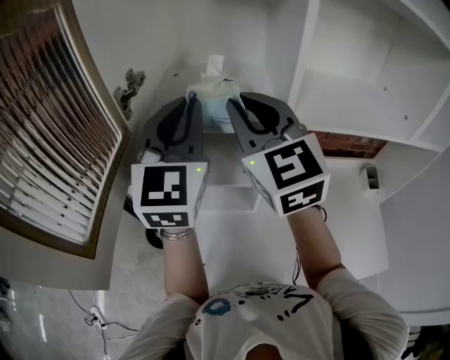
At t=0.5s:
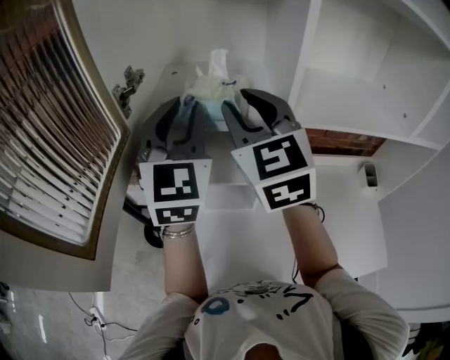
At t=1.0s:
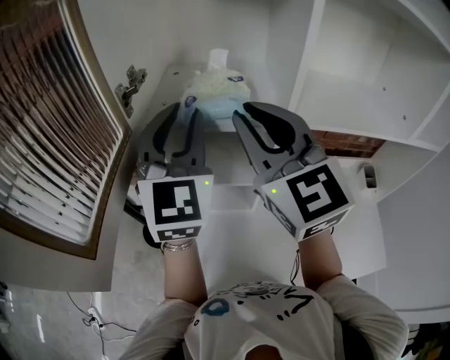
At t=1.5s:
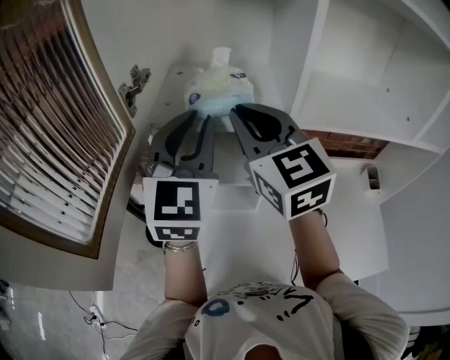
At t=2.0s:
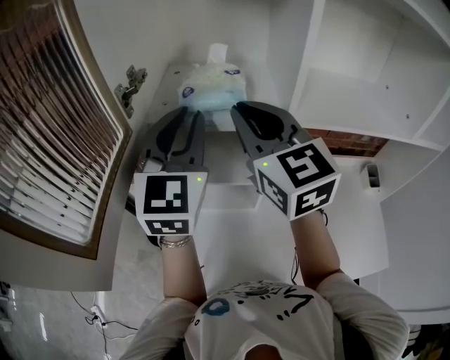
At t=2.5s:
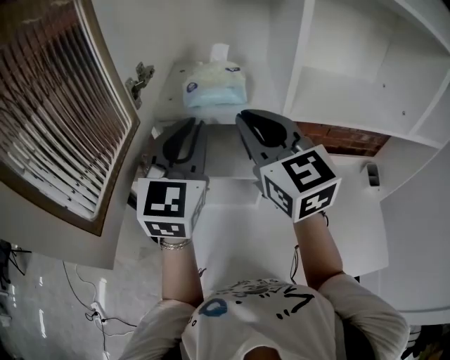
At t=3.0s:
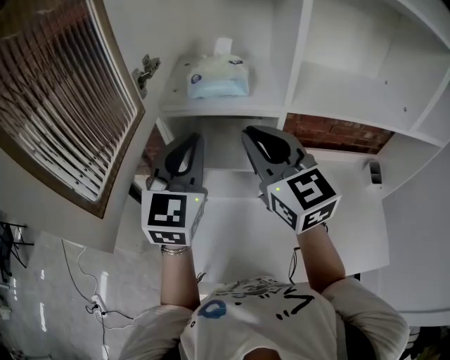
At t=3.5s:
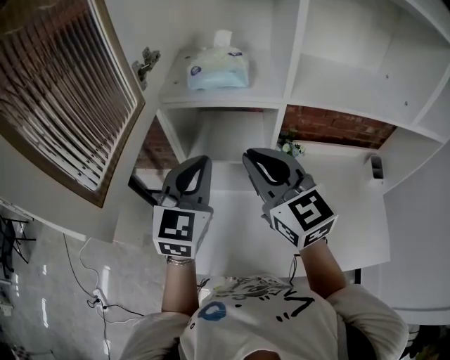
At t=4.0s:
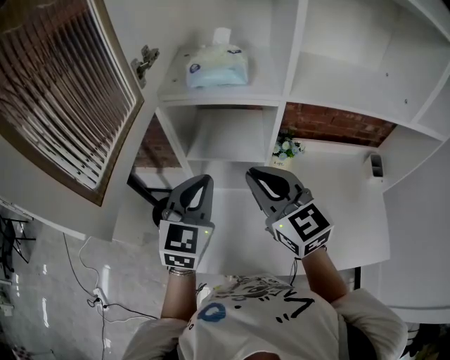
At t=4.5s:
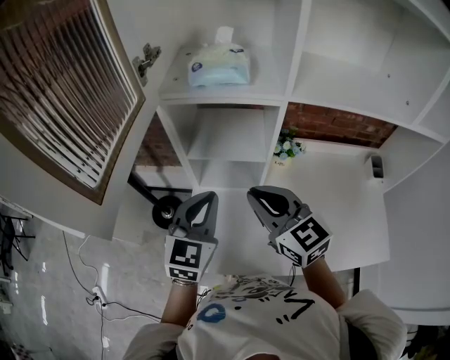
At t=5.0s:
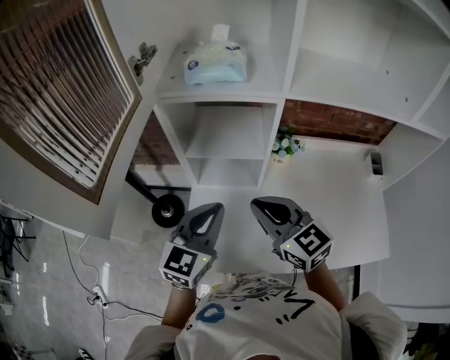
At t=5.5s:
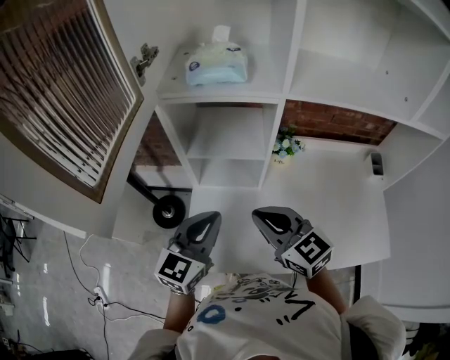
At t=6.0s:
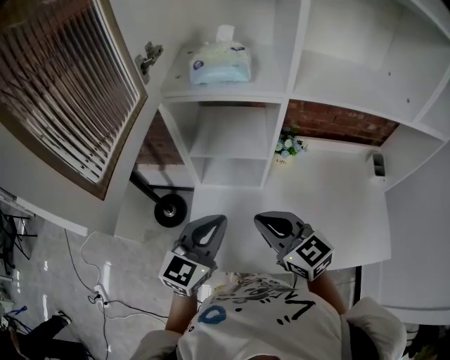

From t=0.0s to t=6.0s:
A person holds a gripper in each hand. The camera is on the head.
From t=0.0s to t=2.0s: The grippers move only a little.
From t=2.0s to t=4.0s: Both grippers move downward and backward, roughly 20 cm.
From t=4.0s to t=6.0s: The left gripper moves backward and downward, approximately 10 cm, while the right gripper travels downward and backward by roughly 15 cm.

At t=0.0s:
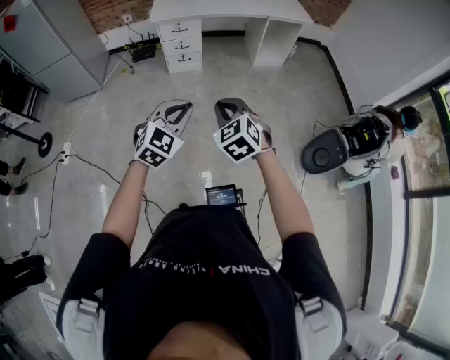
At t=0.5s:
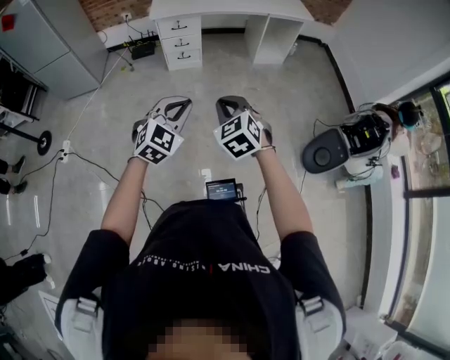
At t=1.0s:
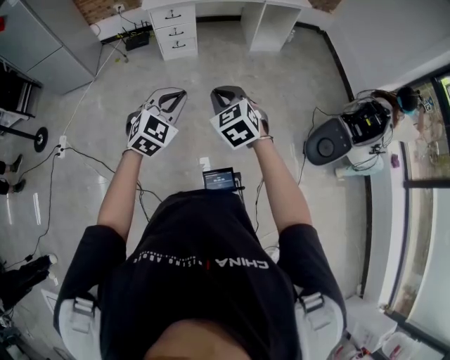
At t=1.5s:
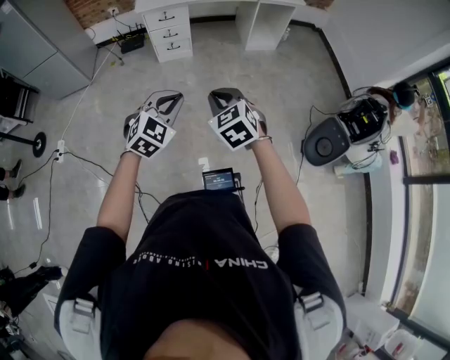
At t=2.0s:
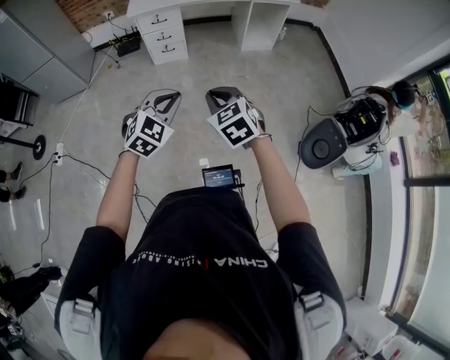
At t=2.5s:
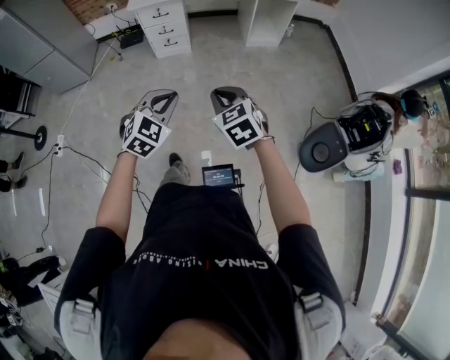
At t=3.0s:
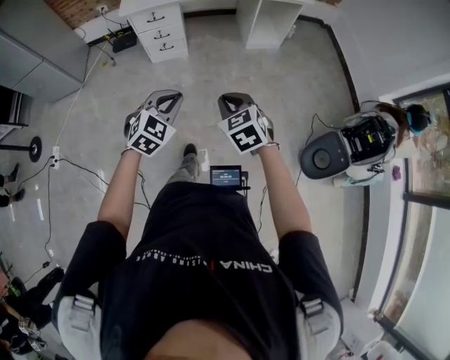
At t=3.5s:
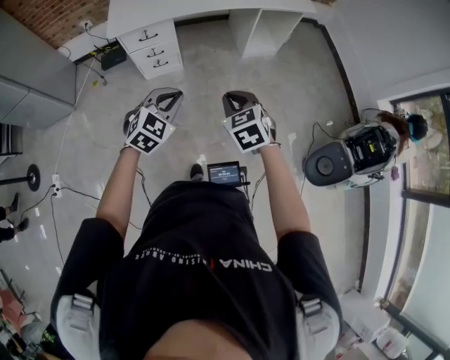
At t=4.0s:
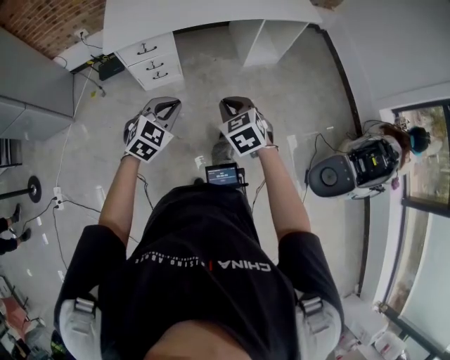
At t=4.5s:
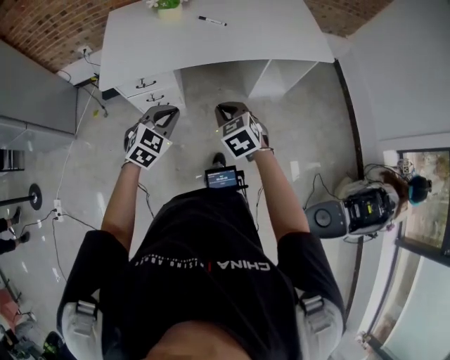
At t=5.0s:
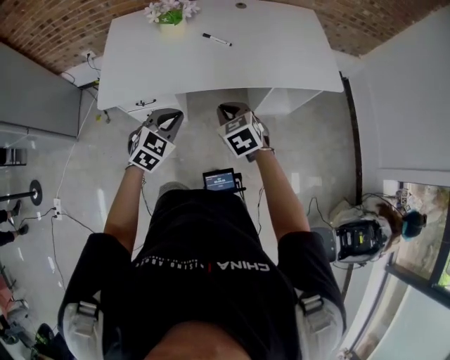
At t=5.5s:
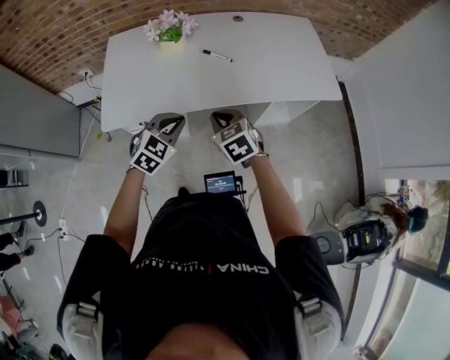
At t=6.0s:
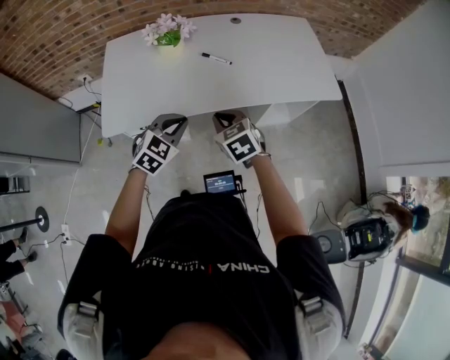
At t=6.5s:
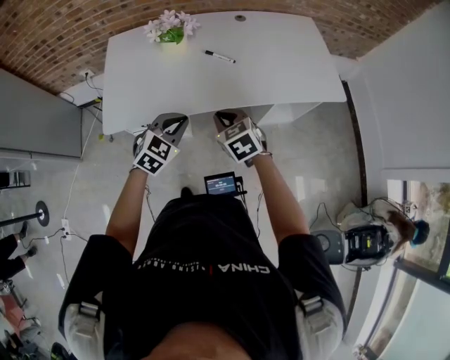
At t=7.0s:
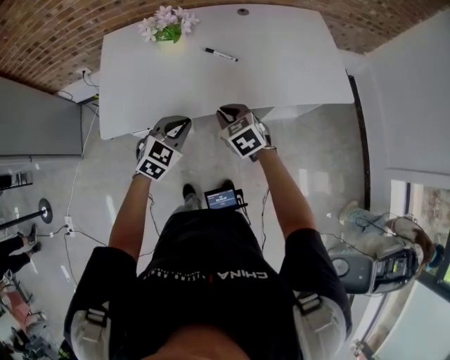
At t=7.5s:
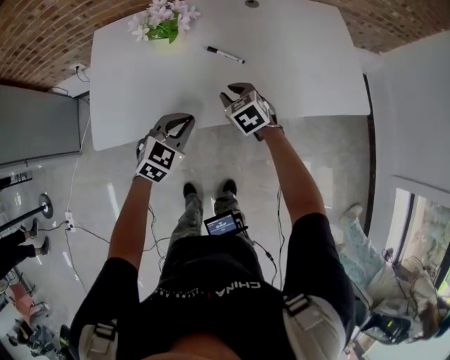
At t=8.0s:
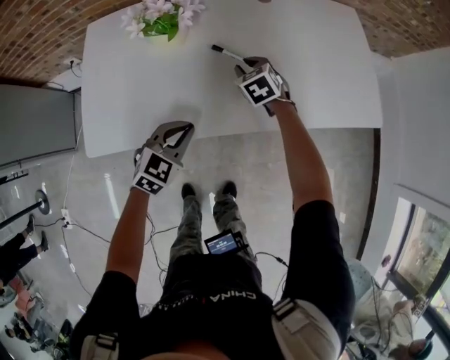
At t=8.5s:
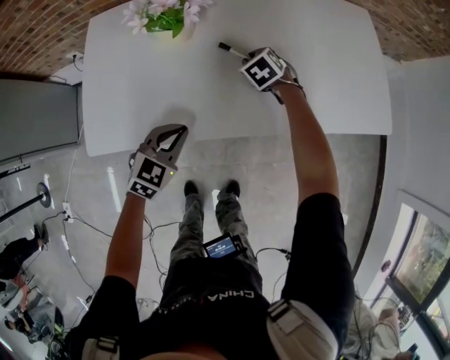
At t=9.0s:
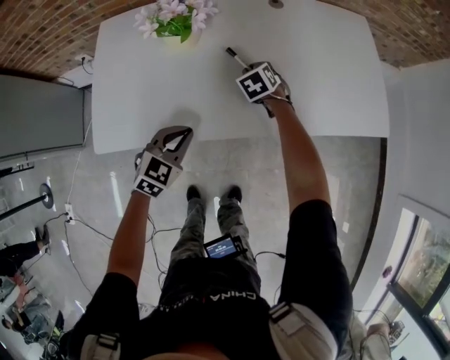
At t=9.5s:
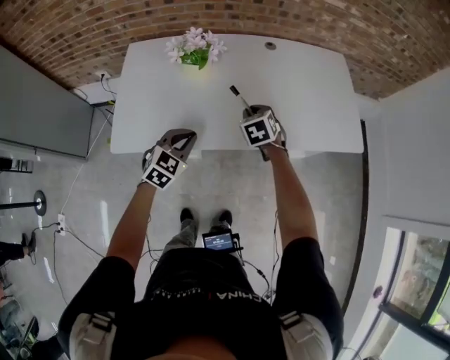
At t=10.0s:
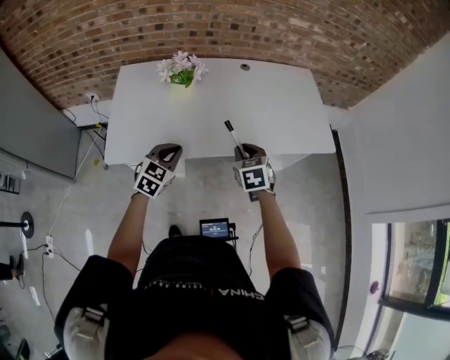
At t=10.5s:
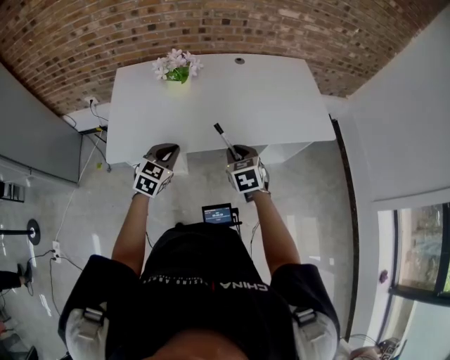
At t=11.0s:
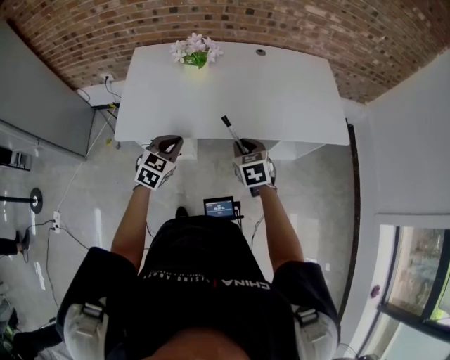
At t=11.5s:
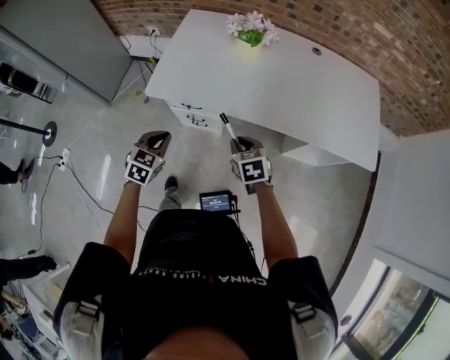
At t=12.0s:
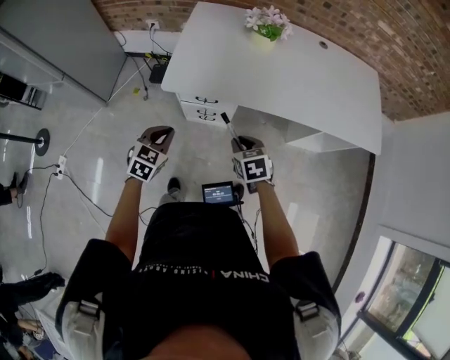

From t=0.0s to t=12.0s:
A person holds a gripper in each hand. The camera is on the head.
From t=0.0s to t=2.0s: Both grippers move to the right, some 10 cm.
From t=2.0s to t=4.0s: Both grippers are carried forward, roughly 50 cm.
From t=4.0s to t=6.0s: The two grippers go some 40 cm forward.
From t=6.0s to t=8.0s: The right gripper moves forward and downward, approximately 40 cm. Meanwhile the left gripper goes about 20 cm forward and downward.
From t=8.0s to t=10.0s: The right gripper is displaced backward and upward by some 30 cm. Meanwhile the left gripper moves upward and backward, about 15 cm.
From t=10.0s to t=12.0s: The left gripper moves approximately 30 cm; the right gripper moves approximately 30 cm, and rotates about 20 degrees.

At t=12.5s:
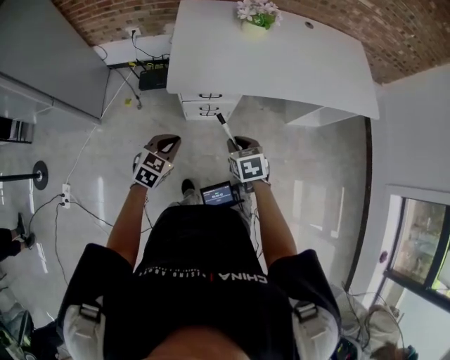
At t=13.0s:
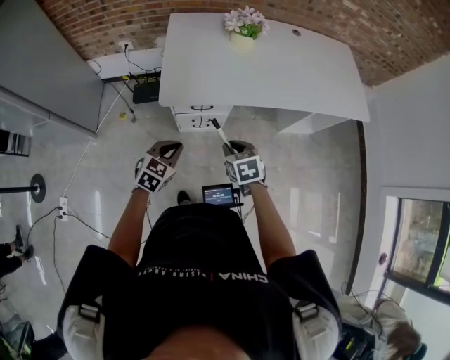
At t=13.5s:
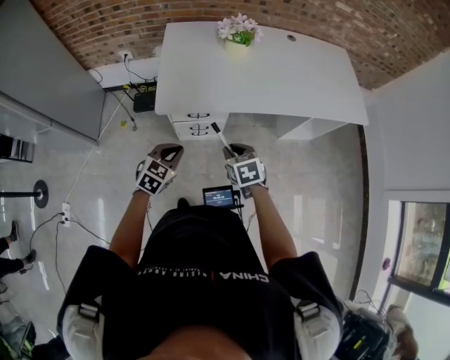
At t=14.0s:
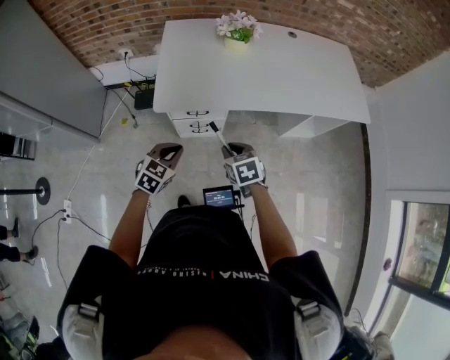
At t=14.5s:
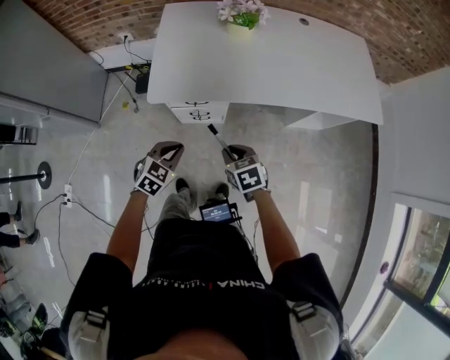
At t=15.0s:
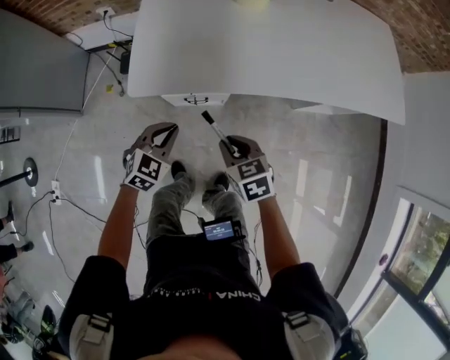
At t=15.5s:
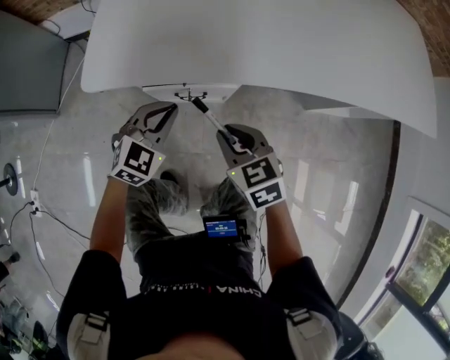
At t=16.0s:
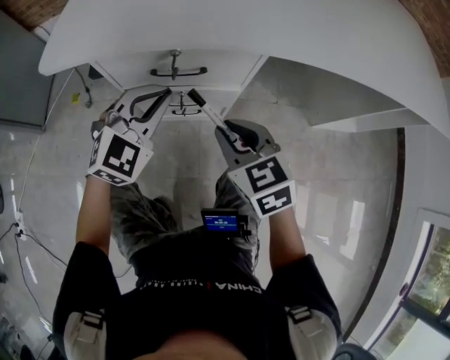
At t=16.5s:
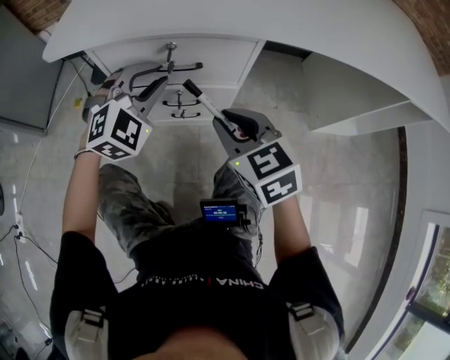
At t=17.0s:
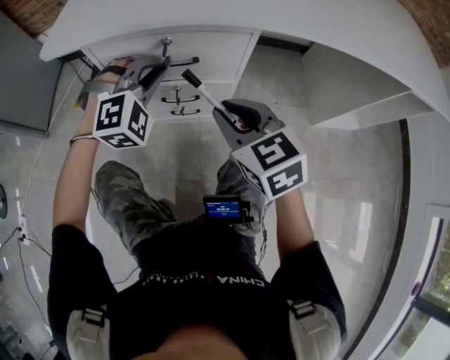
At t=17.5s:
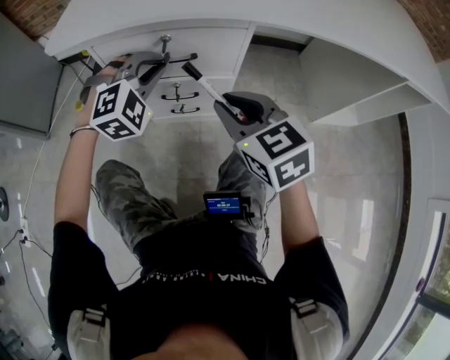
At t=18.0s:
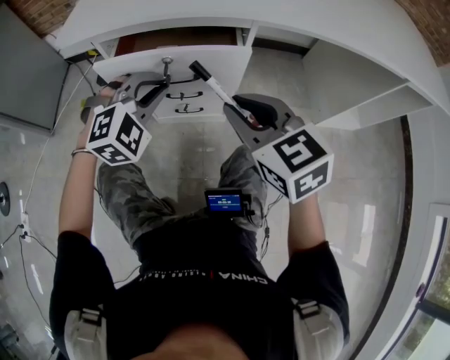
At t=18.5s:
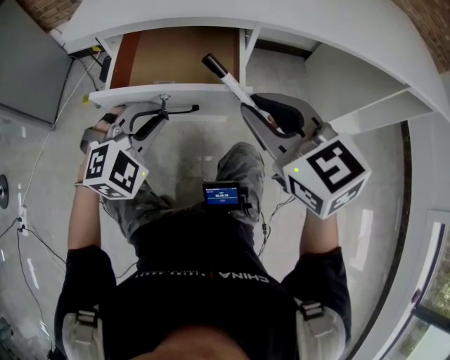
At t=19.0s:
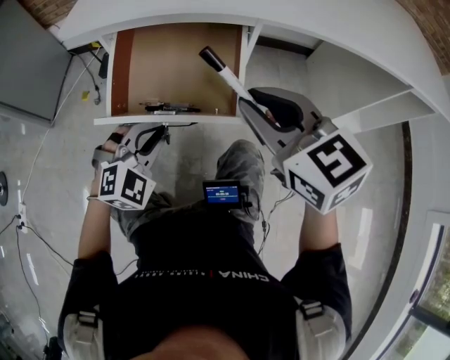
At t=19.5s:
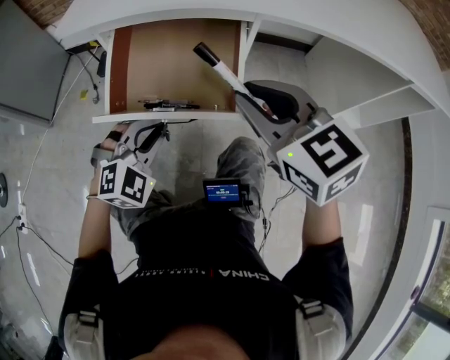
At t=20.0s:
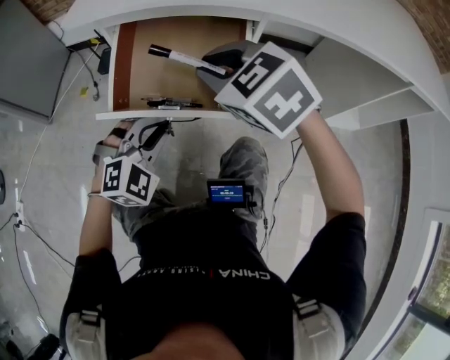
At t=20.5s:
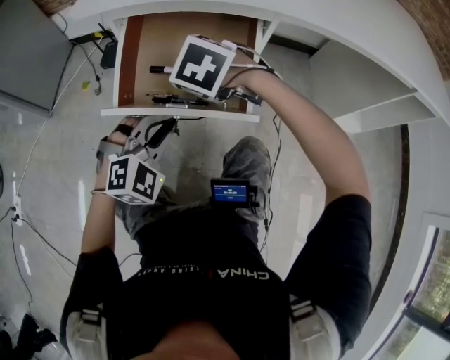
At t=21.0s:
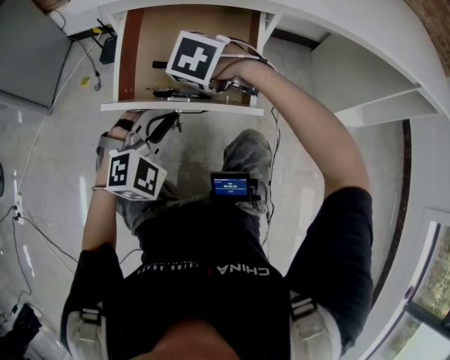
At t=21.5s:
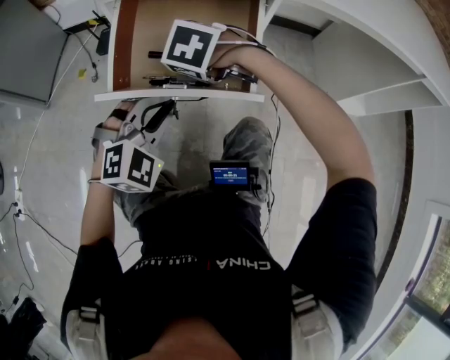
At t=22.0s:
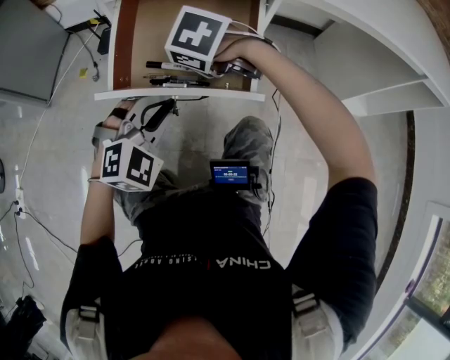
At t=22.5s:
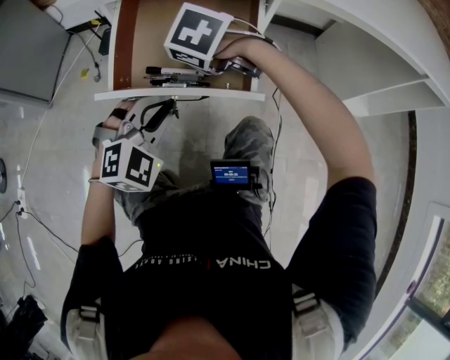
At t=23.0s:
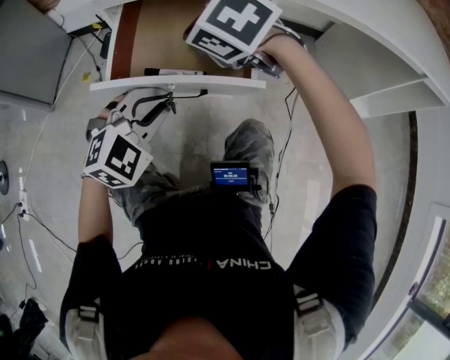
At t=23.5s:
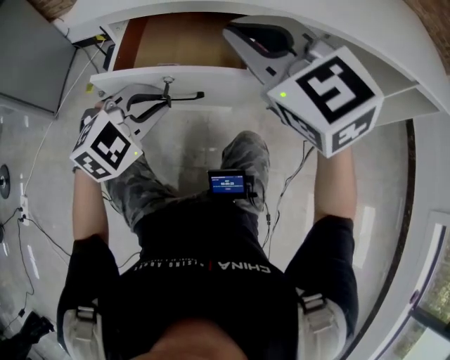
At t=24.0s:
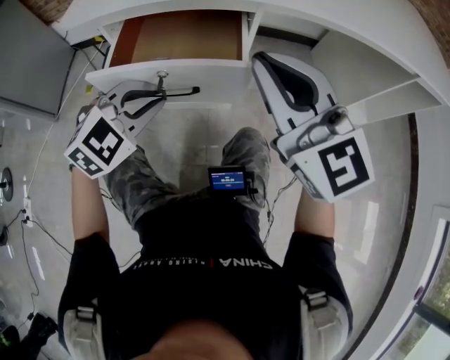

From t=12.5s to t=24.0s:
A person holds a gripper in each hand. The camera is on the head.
From t=12.5s to t=14.5s: The grippers both shift to the right by some 10 cm.
From t=14.5s to t=16.5s: Both grippers move downward and forward, about 40 cm. The left gripper turns by about 40 degrees, while the right gripper rotates roughly 20 degrees.
From t=16.5s to t=18.5s: The left gripper shifts about 15 cm backward. Meanwhile the right gripper is displaced upward and backward by about 15 cm.
From t=18.5s to t=20.0s: The right gripper shifts about 10 cm to the left and forward, and changes its angle by approximately 30 degrees. Meanwhile the left gripper heads downward, covering some 5 cm.
From t=20.0s to t=22.0s: The right gripper moves downward, approximately 10 cm, and swivels about 30 degrees.
From t=22.0s to t=24.0s: The right gripper shifts some 30 cm upward, to the right and backward, and angles its fingers upward, by roughly 70 degrees. The left gripper is displaced upward by about 5 cm.
